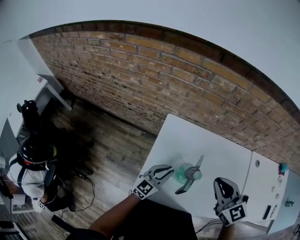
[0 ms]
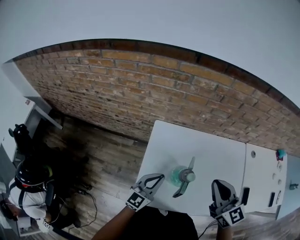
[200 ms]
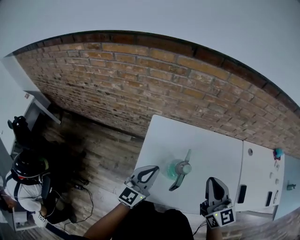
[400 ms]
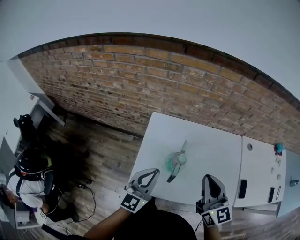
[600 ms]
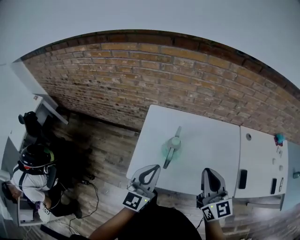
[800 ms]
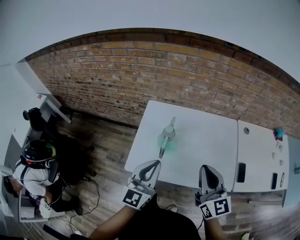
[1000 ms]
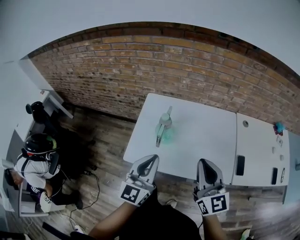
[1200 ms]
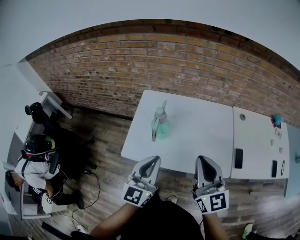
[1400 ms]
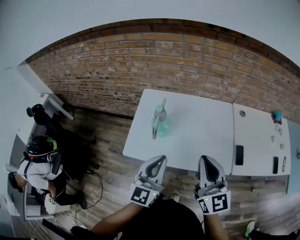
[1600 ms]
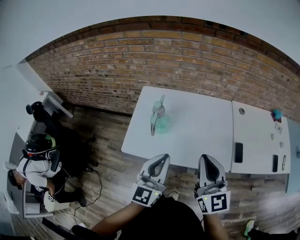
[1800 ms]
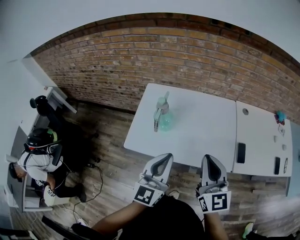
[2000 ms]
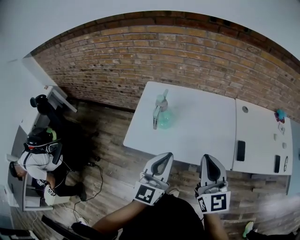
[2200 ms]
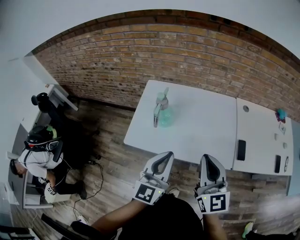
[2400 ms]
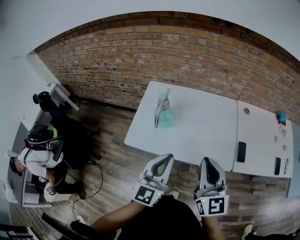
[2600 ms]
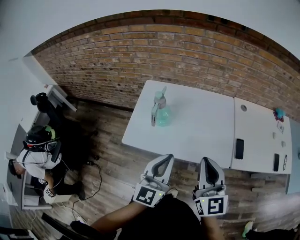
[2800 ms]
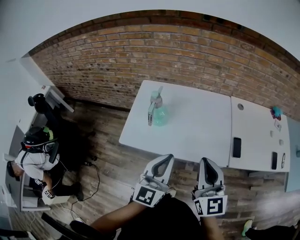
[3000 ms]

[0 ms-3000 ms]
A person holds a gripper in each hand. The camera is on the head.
0 ms to 1600 ms: The left gripper goes roughly 35 cm backward, upward and to the right, and swivels approximately 20 degrees. Meanwhile the right gripper is displaced backward and to the right by about 30 cm, and changes its angle by about 30 degrees.
1600 ms to 3000 ms: The left gripper is displaced to the right and backward by roughly 10 cm. The right gripper travels backward by roughly 5 cm.

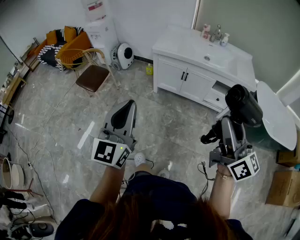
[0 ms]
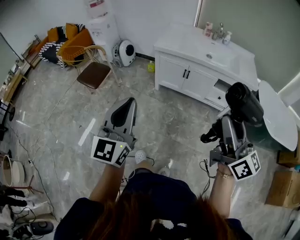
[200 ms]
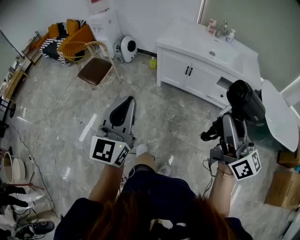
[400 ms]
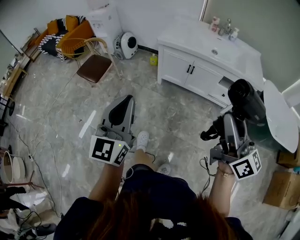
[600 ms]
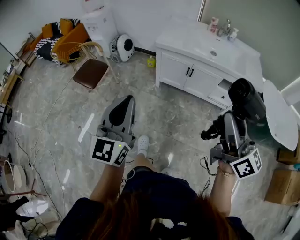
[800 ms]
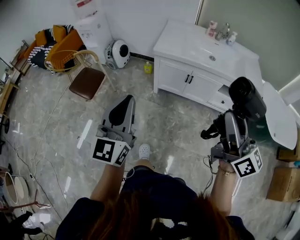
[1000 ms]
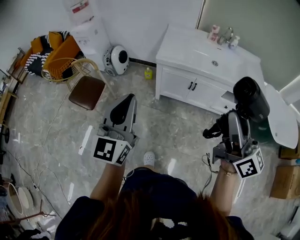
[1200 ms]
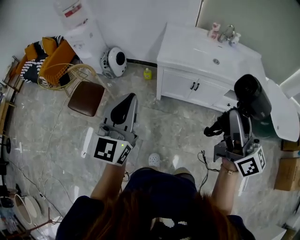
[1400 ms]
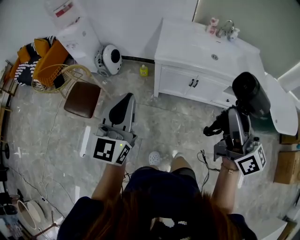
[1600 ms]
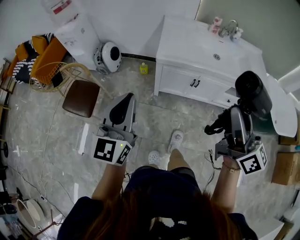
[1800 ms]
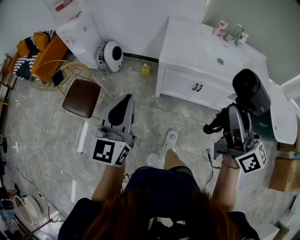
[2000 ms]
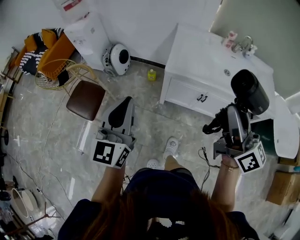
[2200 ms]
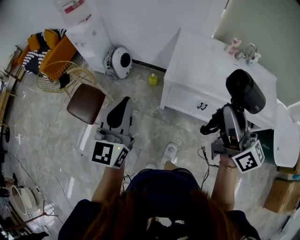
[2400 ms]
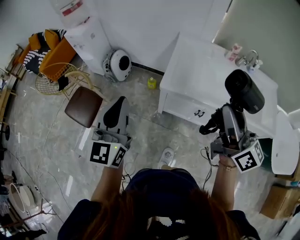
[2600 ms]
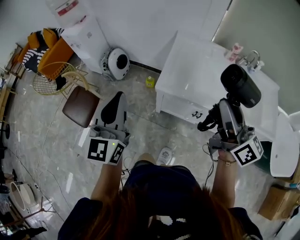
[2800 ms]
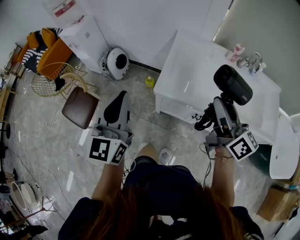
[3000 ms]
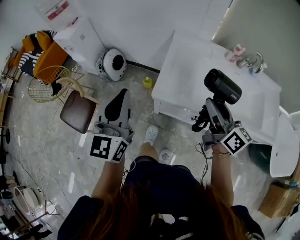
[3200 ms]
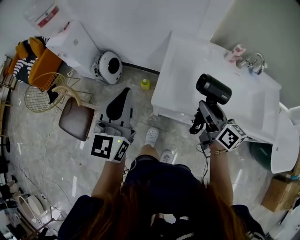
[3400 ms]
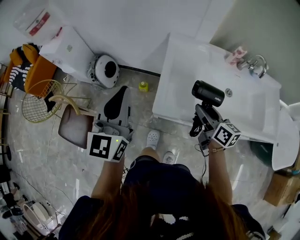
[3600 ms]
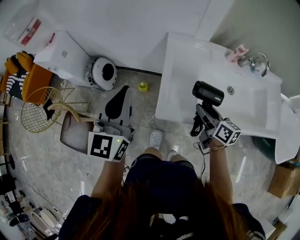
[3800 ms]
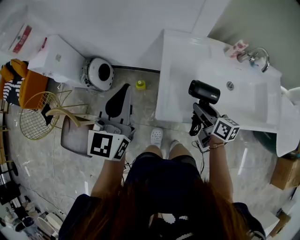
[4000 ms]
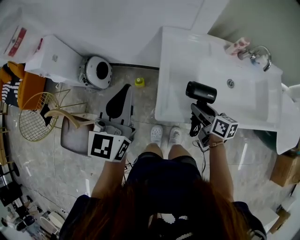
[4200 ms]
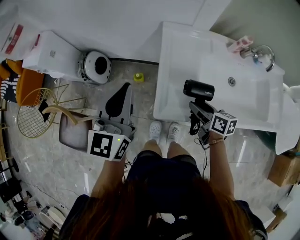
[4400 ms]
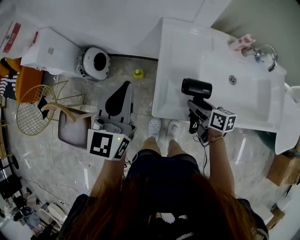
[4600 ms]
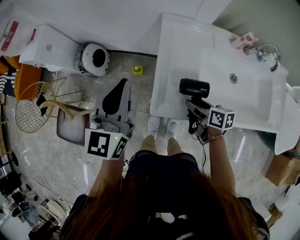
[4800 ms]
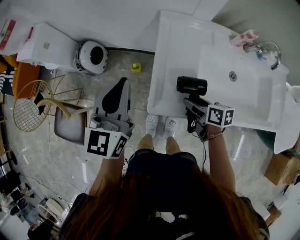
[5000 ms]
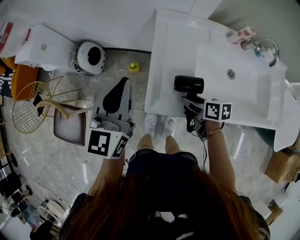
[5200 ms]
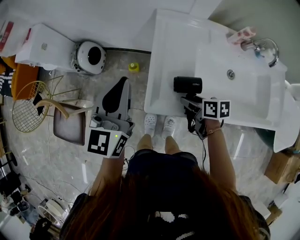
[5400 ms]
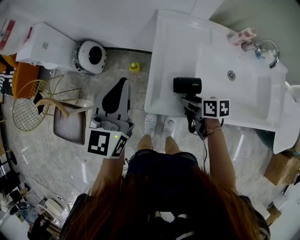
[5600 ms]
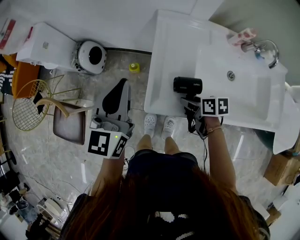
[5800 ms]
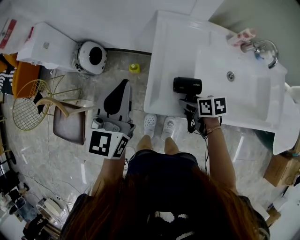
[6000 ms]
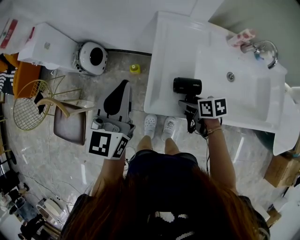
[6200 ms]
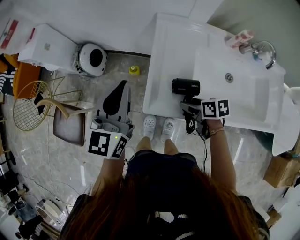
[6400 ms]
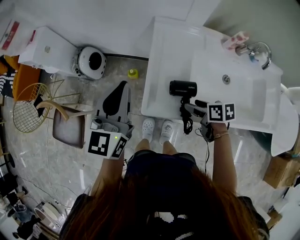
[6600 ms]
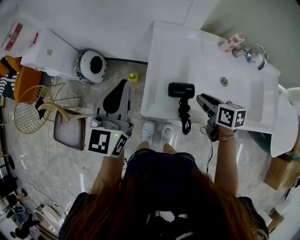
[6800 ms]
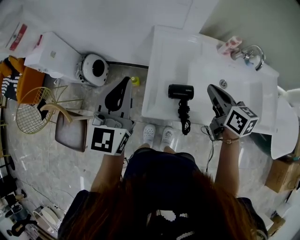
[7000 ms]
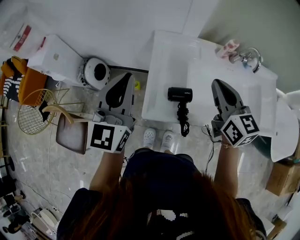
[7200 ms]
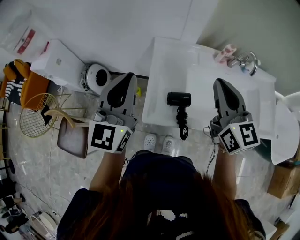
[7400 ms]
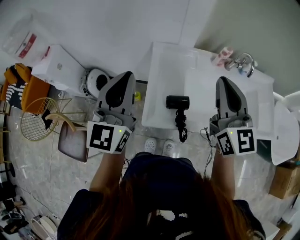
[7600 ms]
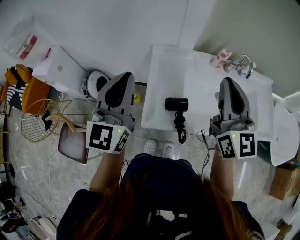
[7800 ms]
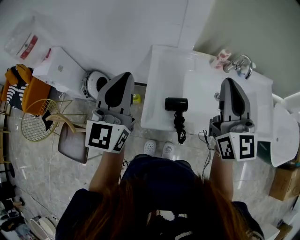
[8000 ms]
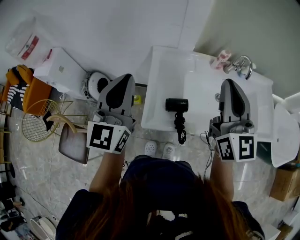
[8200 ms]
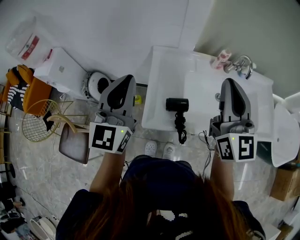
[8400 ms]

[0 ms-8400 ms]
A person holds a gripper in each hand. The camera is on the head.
0 ms to 1400 ms: Both grippers move forward and to the left, roughly 35 cm.
1400 ms to 2800 ms: The grippers both shift forward by approximately 35 cm.
2800 ms to 4200 ms: The left gripper travels forward by approximately 30 cm. The right gripper moves downward and forward, about 40 cm, and tilts its fingers approximately 40 degrees downward.
4200 ms to 5600 ms: The right gripper is displaced downward by approximately 10 cm, and changes its angle by some 30 degrees; the left gripper is displaced downward by some 5 cm.
5600 ms to 7000 ms: The right gripper goes approximately 20 cm upward, rotates approximately 40 degrees, and closes up. The left gripper goes roughly 5 cm upward.
7000 ms to 8400 ms: The left gripper travels upward by roughly 10 cm; the right gripper is displaced upward by some 20 cm, and angles its fingers upward, by roughly 30 degrees.

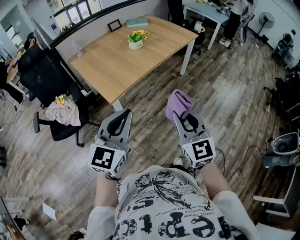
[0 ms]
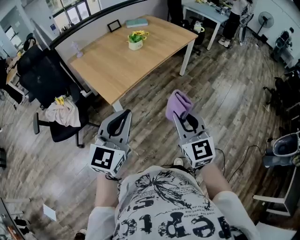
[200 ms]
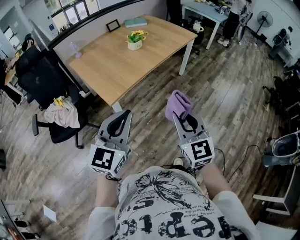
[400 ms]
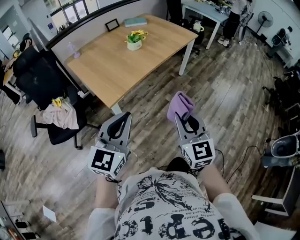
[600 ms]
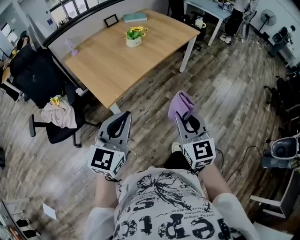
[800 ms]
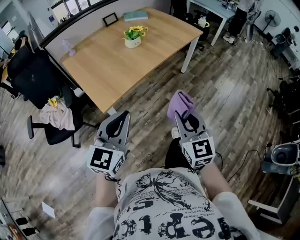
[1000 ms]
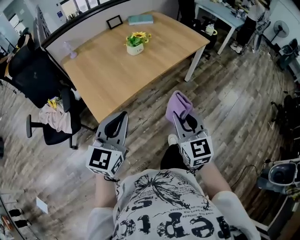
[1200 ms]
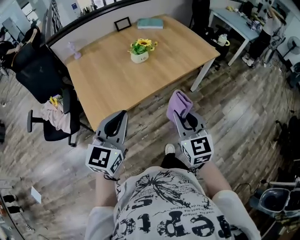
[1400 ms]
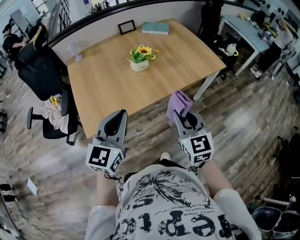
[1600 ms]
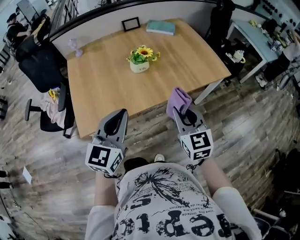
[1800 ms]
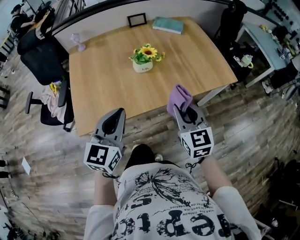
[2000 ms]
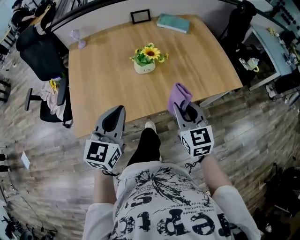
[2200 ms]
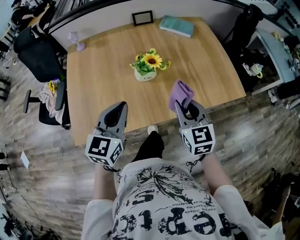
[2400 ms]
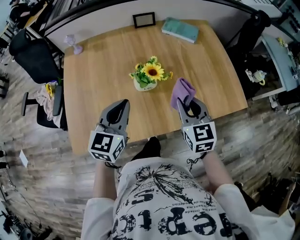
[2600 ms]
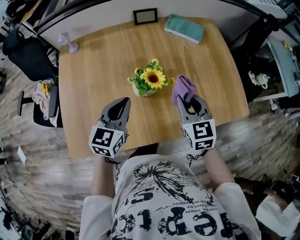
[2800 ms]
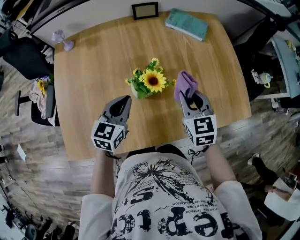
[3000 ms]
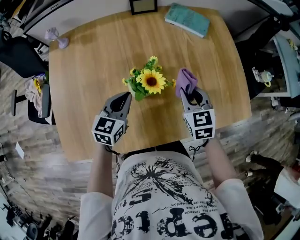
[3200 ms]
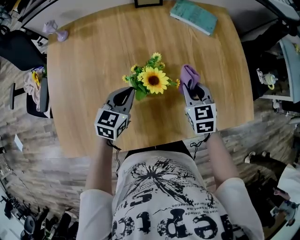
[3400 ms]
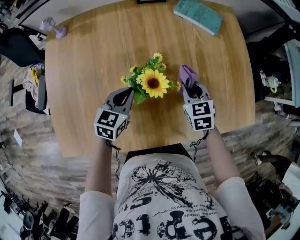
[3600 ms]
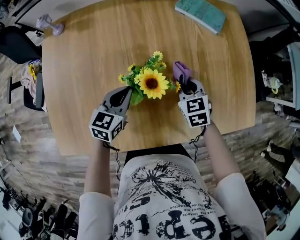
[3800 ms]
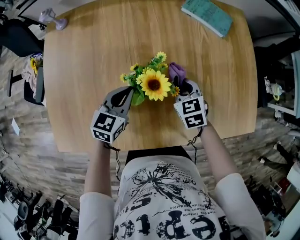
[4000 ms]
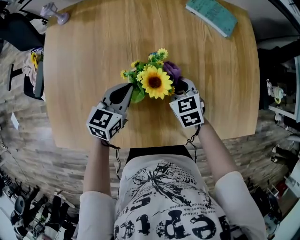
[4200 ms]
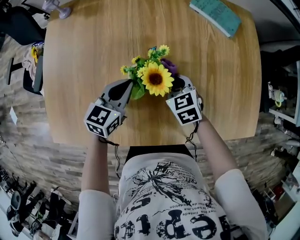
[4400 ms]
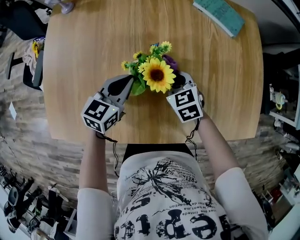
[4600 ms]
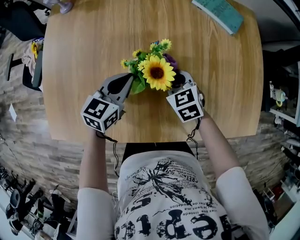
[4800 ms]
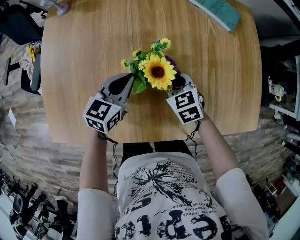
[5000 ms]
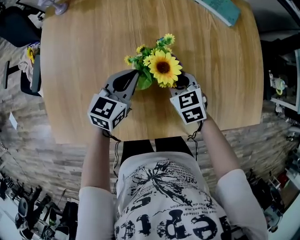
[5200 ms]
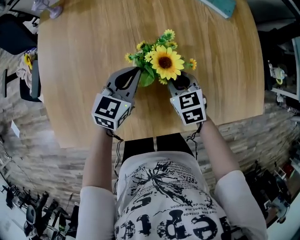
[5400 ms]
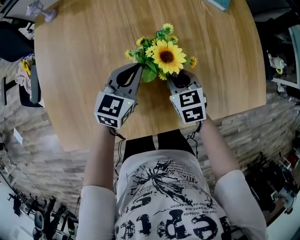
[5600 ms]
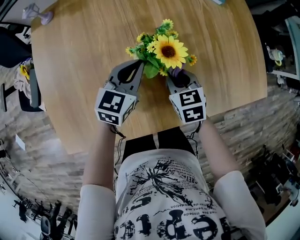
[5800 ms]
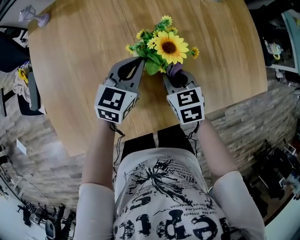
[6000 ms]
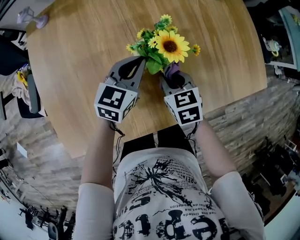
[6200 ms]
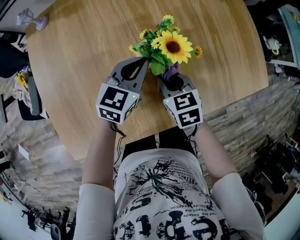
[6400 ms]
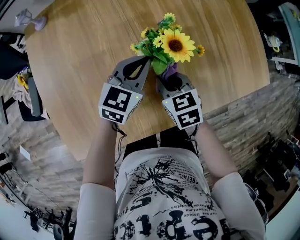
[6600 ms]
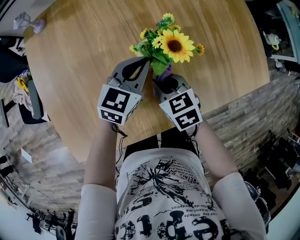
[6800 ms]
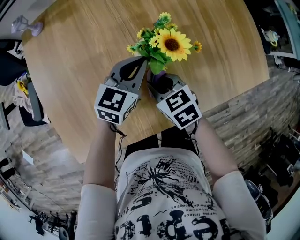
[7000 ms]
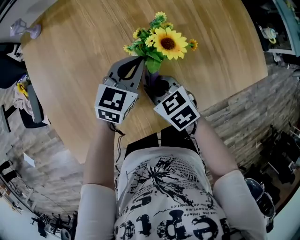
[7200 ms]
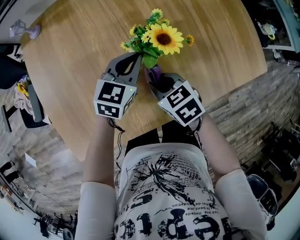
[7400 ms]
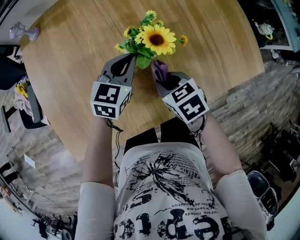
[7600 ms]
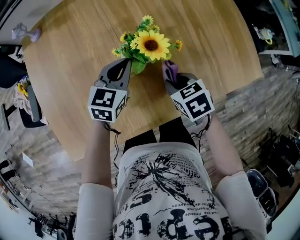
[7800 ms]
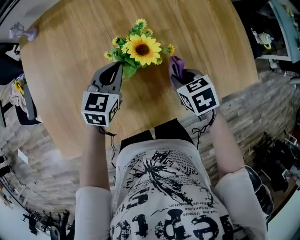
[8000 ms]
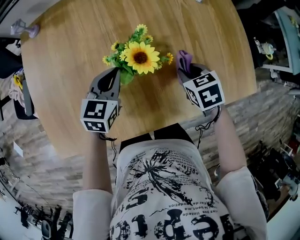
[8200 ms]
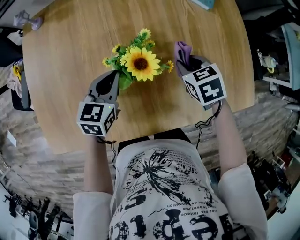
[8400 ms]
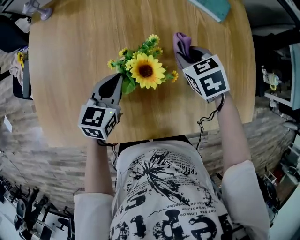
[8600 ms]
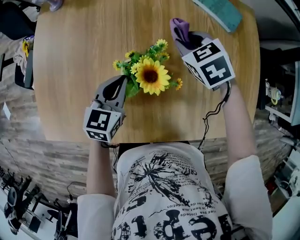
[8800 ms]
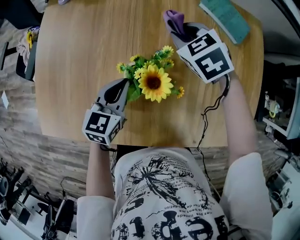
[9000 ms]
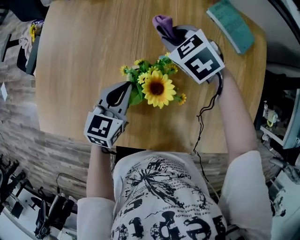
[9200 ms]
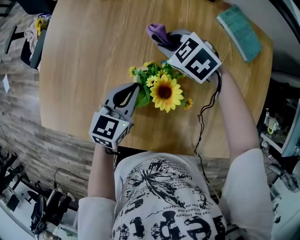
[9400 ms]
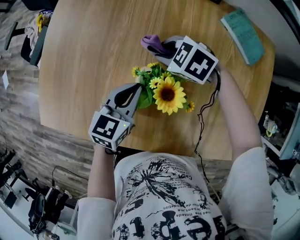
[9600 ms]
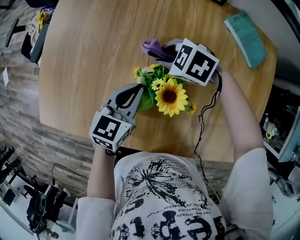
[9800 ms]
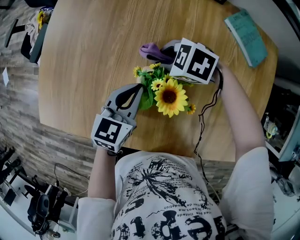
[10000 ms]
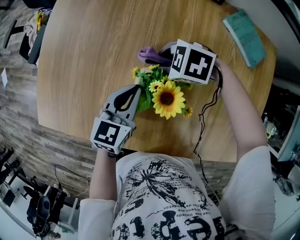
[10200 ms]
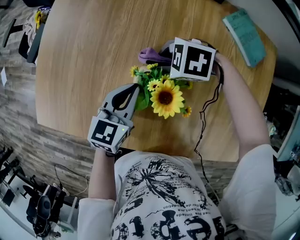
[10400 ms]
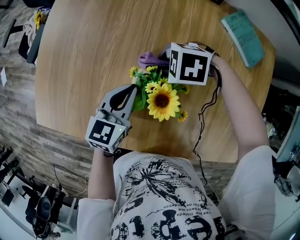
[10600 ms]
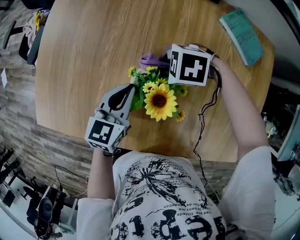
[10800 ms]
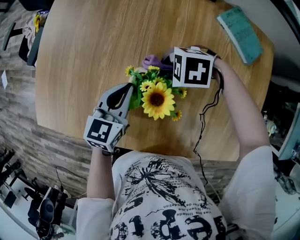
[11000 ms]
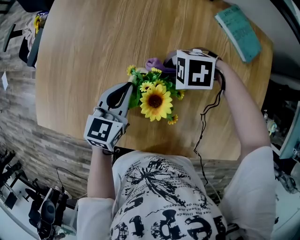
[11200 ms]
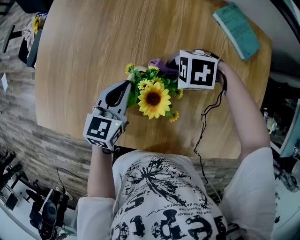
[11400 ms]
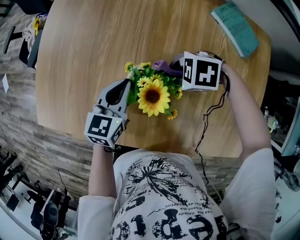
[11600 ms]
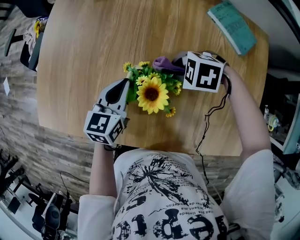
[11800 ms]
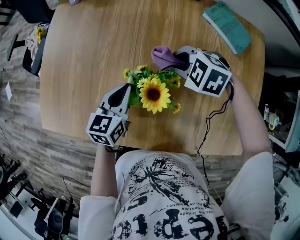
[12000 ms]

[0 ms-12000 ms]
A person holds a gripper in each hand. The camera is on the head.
0 ms to 1600 ms: Both grippers move forward, approximately 35 cm. The left gripper rotates about 20 degrees.
1600 ms to 3000 ms: The left gripper heads forward and downward, covering approximately 40 cm, and rotates roughly 20 degrees. The right gripper goes roughly 40 cm forward.
3000 ms to 4400 ms: The left gripper shifts approximately 10 cm downward. Meanwhile the right gripper shifts approximately 15 cm downward, and turns by about 30 degrees.
4400 ms to 6000 ms: The right gripper moves backward, approximately 10 cm, and changes its angle by approximately 20 degrees.
6000 ms to 7600 ms: The right gripper moves backward, roughly 5 cm, and reaches about 10 cm to the left, then returns.
7600 ms to 9000 ms: The right gripper travels forward by roughly 30 cm, and rotates about 40 degrees; the left gripper rotates about 30 degrees.
9000 ms to 10400 ms: The right gripper shifts by some 15 cm, and changes its angle by roughly 60 degrees.
10400 ms to 12000 ms: The right gripper moves some 10 cm, and swivels roughly 20 degrees.
